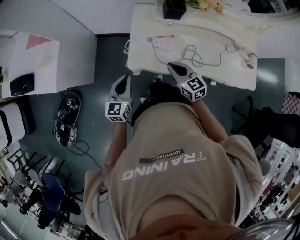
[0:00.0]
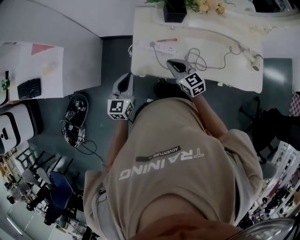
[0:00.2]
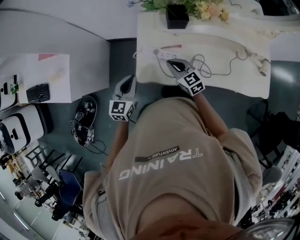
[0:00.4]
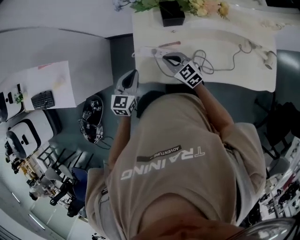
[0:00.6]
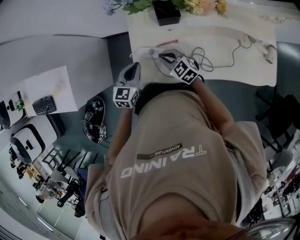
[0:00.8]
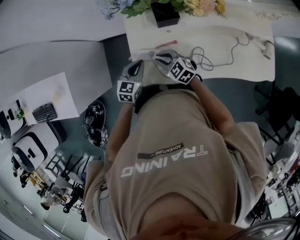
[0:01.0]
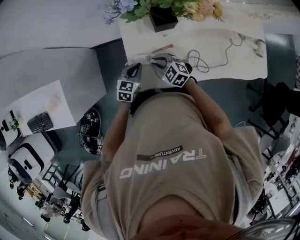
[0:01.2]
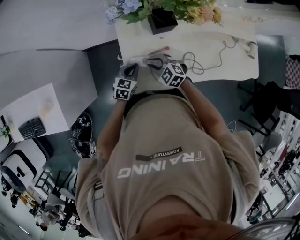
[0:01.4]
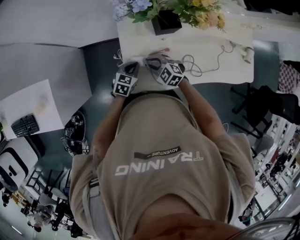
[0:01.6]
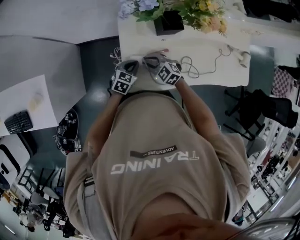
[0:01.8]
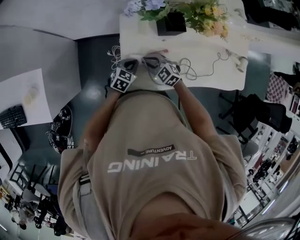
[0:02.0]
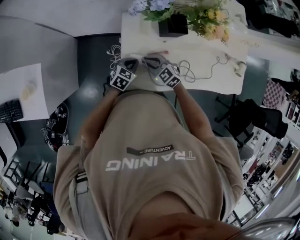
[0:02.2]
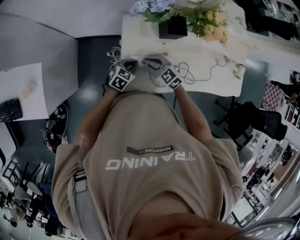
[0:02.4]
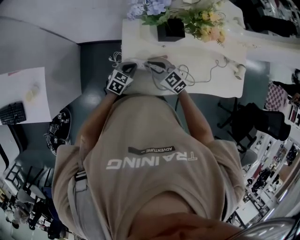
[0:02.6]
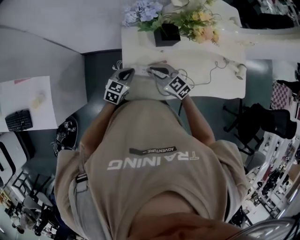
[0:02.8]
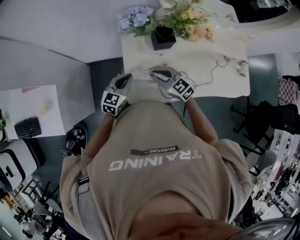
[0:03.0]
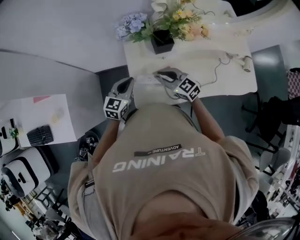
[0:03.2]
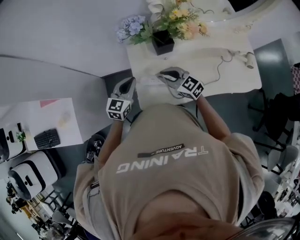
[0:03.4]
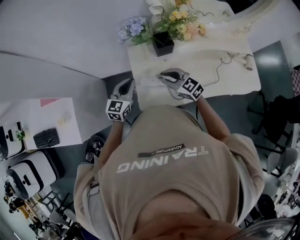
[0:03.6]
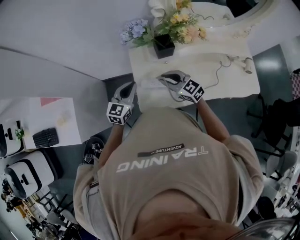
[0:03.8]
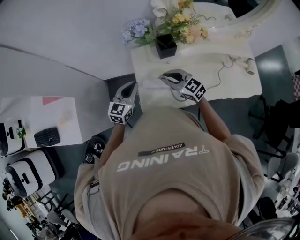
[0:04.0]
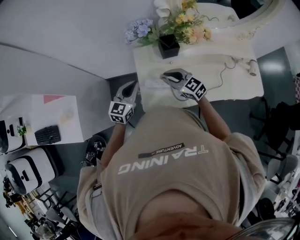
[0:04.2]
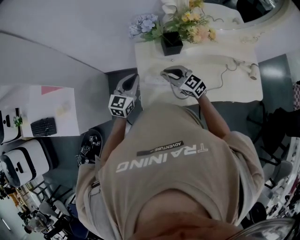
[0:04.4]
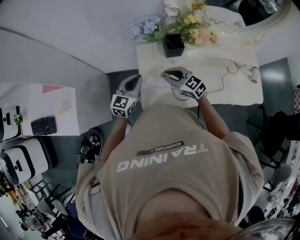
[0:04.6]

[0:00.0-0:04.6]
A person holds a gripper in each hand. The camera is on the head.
0:00.0 to 0:01.6: The right gripper shifts some 20 cm forward and downward, changes its angle by about 30 degrees, and opens up. Meanwhile the left gripper is displaced forward, downward and to the right by roughly 30 cm, and rotates approximately 40 degrees.
0:01.6 to 0:03.0: The grippers both shift upward by approximately 15 cm. The right gripper turns by about 20 degrees.
0:03.0 to 0:04.6: The left gripper moves upward, some 5 cm.

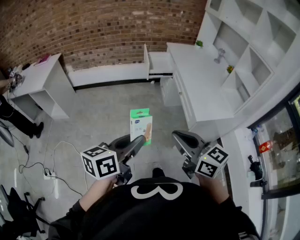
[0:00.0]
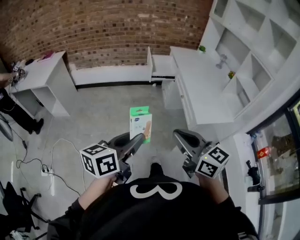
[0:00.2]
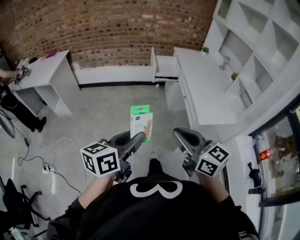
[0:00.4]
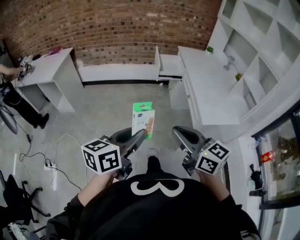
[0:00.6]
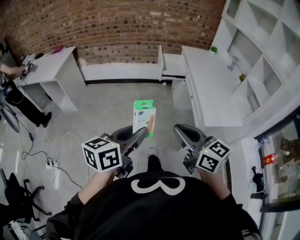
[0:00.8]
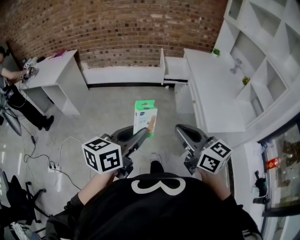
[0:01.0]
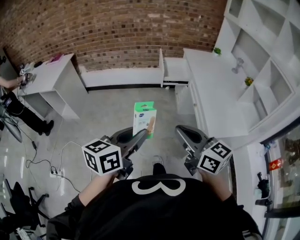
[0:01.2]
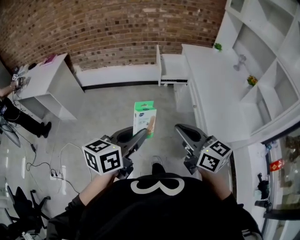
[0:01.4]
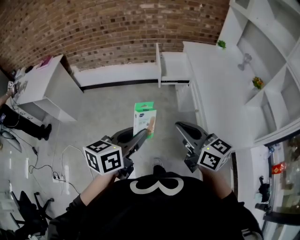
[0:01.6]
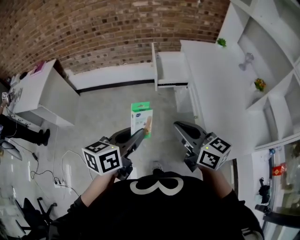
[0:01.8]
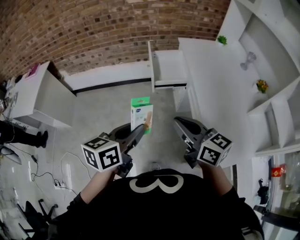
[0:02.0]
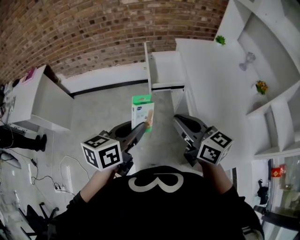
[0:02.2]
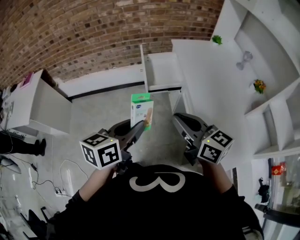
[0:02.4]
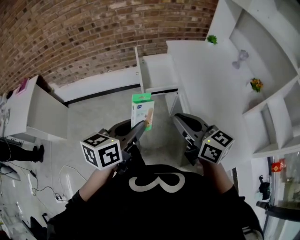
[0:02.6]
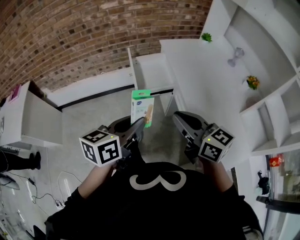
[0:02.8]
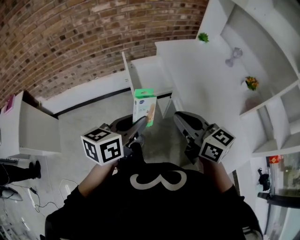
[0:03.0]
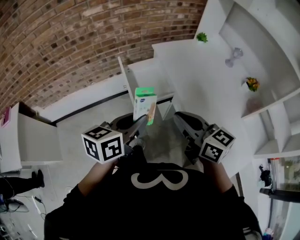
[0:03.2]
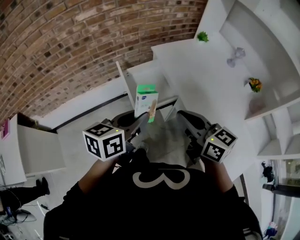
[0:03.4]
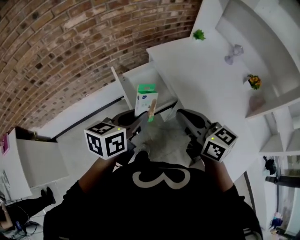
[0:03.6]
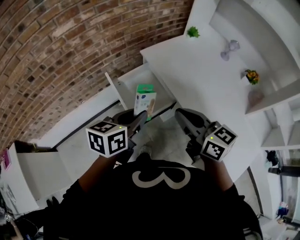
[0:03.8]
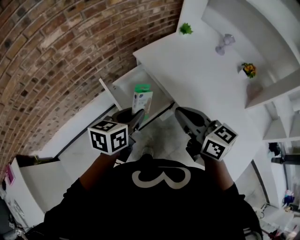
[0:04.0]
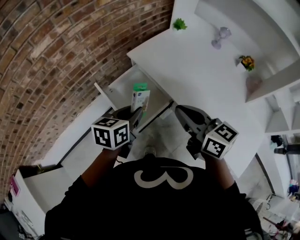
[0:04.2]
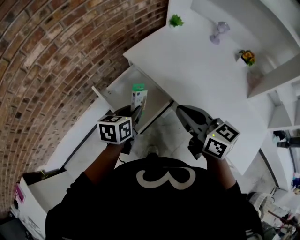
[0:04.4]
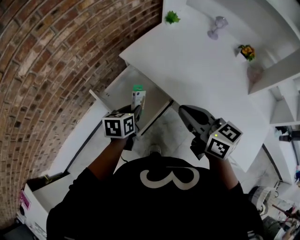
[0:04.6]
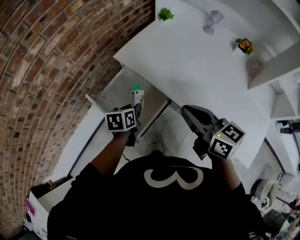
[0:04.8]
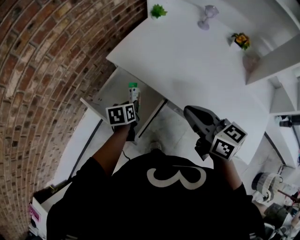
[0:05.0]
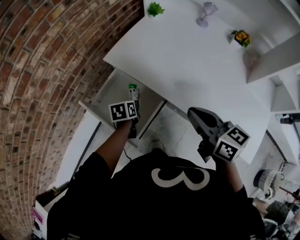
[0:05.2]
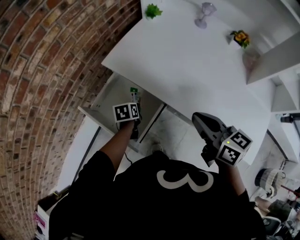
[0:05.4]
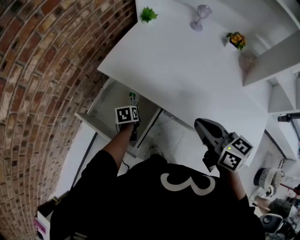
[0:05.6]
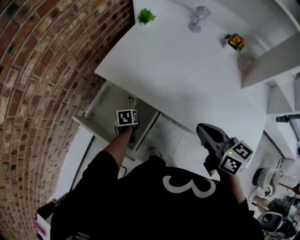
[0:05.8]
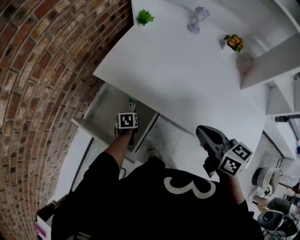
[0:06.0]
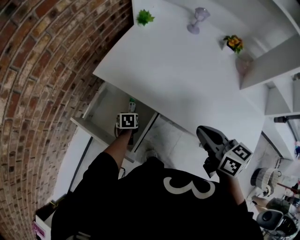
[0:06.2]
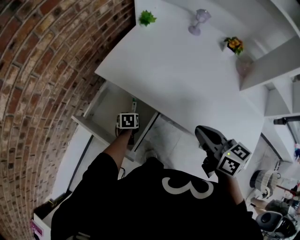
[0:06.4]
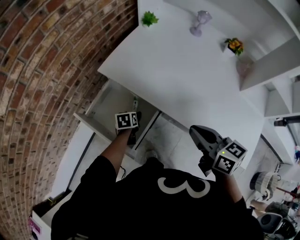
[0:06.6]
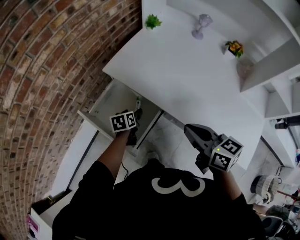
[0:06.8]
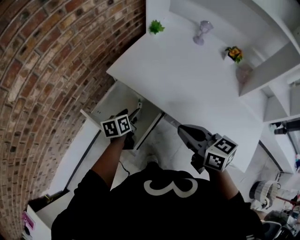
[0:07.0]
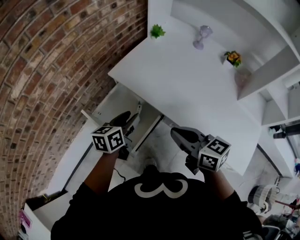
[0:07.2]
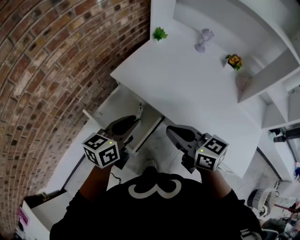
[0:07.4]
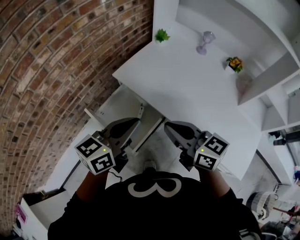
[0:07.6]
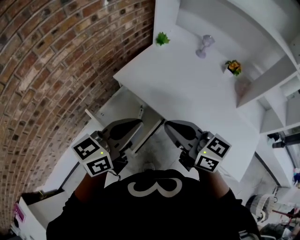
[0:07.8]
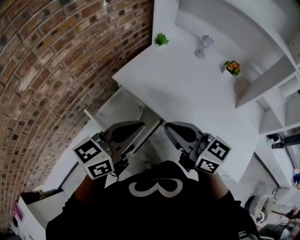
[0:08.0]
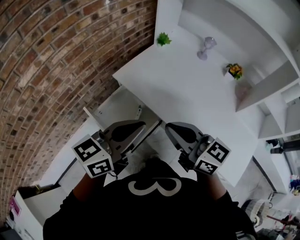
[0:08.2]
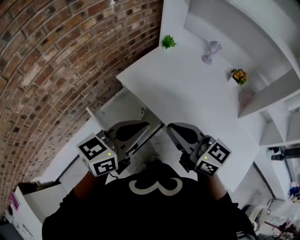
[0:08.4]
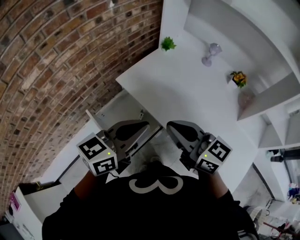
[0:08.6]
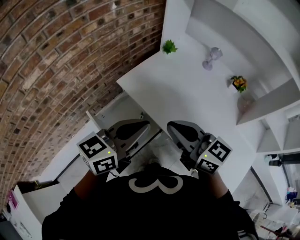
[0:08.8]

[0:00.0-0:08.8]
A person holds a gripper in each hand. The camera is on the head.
0:00.0 to 0:01.4: Both grippers travel together forward, approximately 15 cm.
0:01.4 to 0:03.0: The grippers both shift forward by approximately 40 cm.
0:03.0 to 0:04.4: The left gripper goes approximately 35 cm forward and downward, and rotates roughly 30 degrees; the right gripper travels forward by roughly 20 cm, and swivels some 30 degrees.
0:04.4 to 0:05.8: The left gripper travels downward and forward by about 30 cm, and changes its angle by about 30 degrees. Meanwhile the right gripper heads to the right and downward, covering about 15 cm, and turns by about 20 degrees.
0:05.8 to 0:07.4: The right gripper goes approximately 10 cm to the left, and swivels about 20 degrees. The left gripper is displaced upward by roughly 35 cm, points its fingers approximately 50 degrees further upward, and opens and closes again.
0:07.4 to 0:08.8: The left gripper is displaced upward and to the right by roughly 10 cm. Meanwhile the right gripper travels upward and forward by roughly 10 cm.

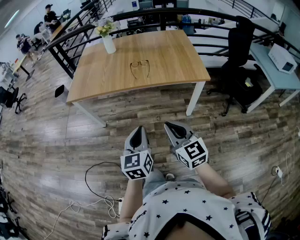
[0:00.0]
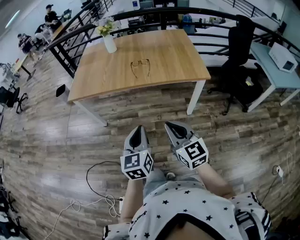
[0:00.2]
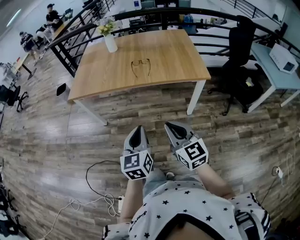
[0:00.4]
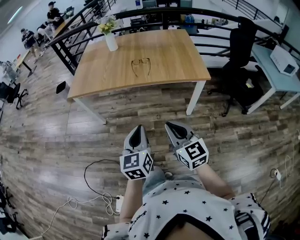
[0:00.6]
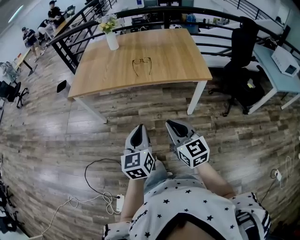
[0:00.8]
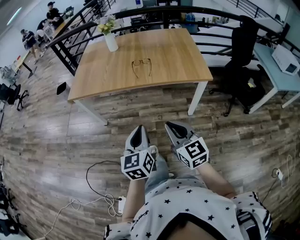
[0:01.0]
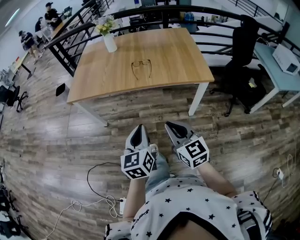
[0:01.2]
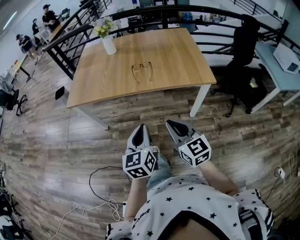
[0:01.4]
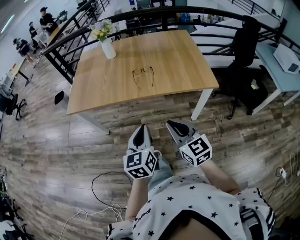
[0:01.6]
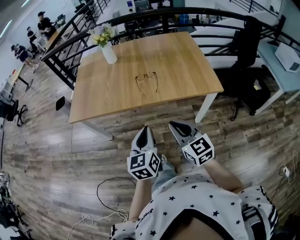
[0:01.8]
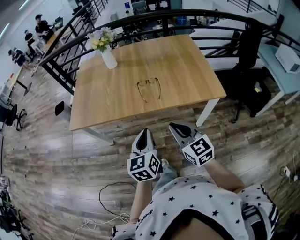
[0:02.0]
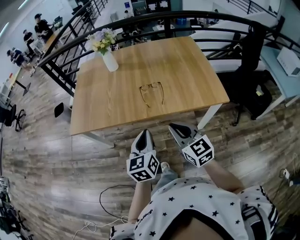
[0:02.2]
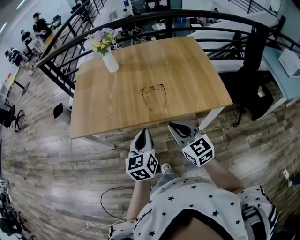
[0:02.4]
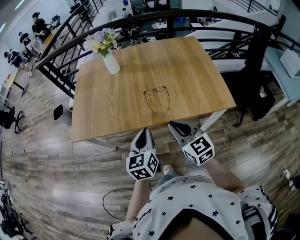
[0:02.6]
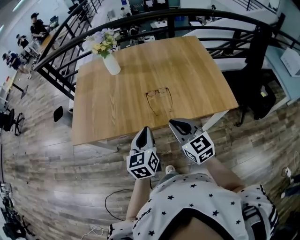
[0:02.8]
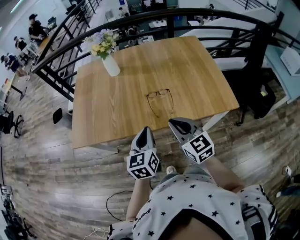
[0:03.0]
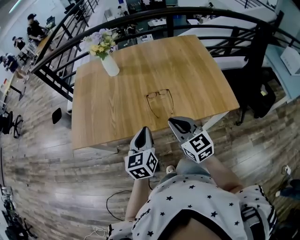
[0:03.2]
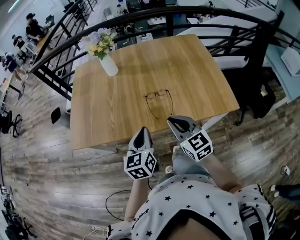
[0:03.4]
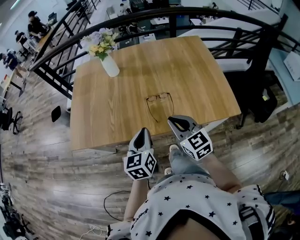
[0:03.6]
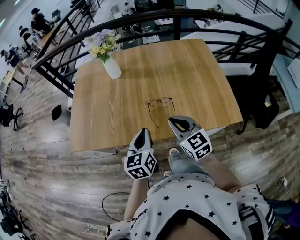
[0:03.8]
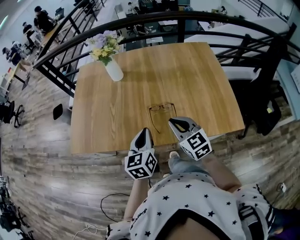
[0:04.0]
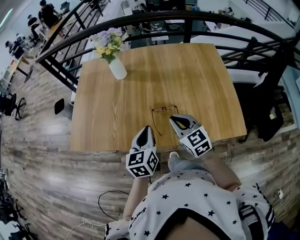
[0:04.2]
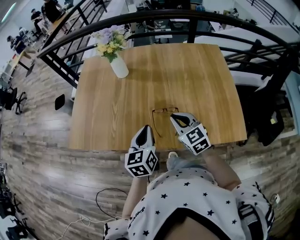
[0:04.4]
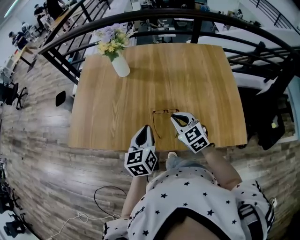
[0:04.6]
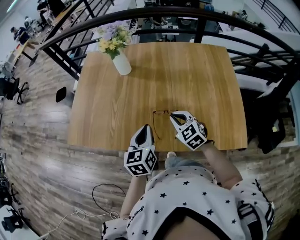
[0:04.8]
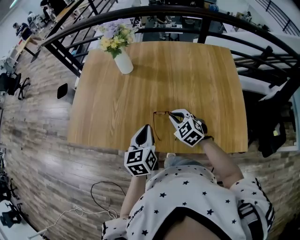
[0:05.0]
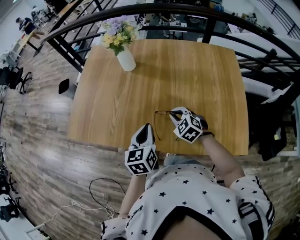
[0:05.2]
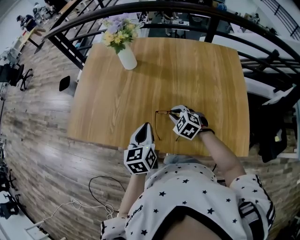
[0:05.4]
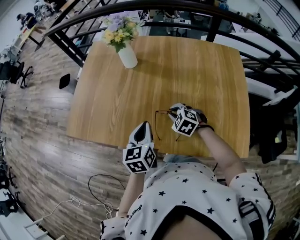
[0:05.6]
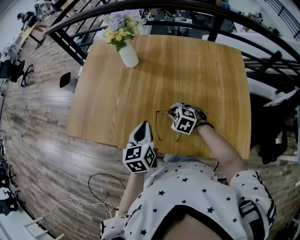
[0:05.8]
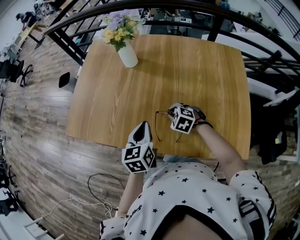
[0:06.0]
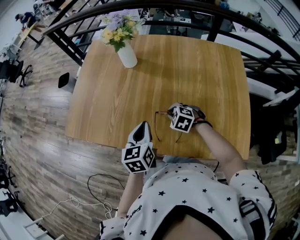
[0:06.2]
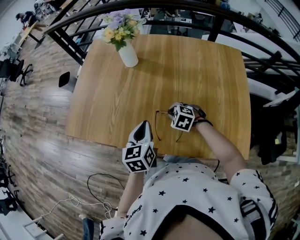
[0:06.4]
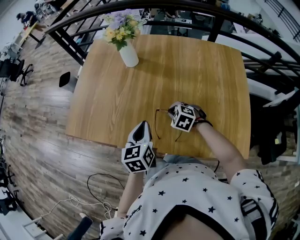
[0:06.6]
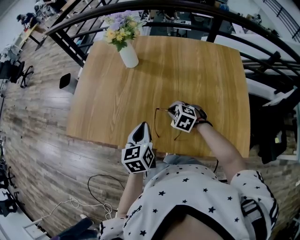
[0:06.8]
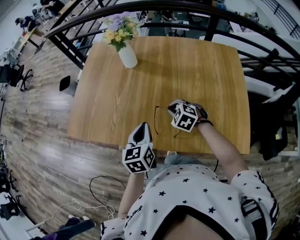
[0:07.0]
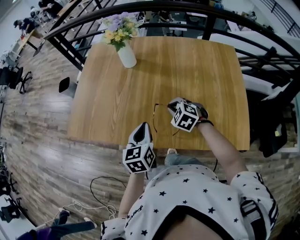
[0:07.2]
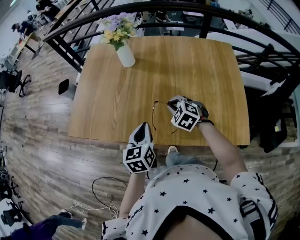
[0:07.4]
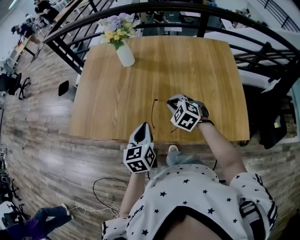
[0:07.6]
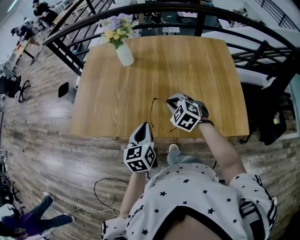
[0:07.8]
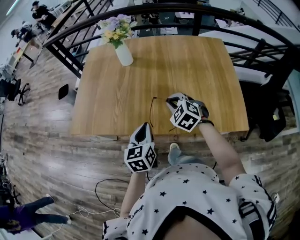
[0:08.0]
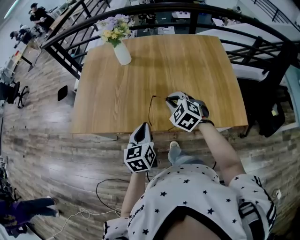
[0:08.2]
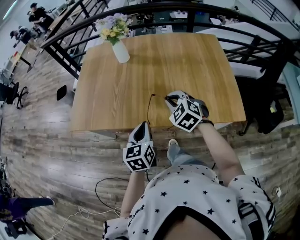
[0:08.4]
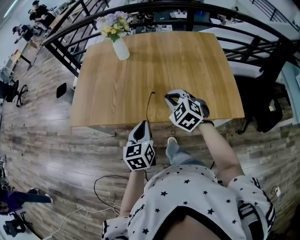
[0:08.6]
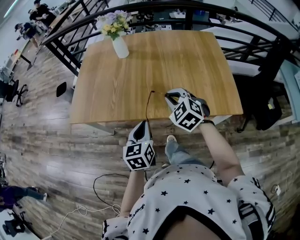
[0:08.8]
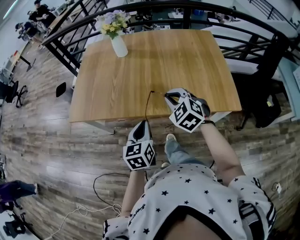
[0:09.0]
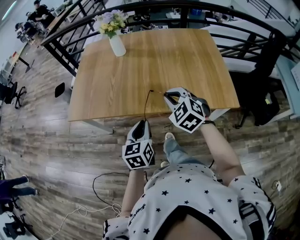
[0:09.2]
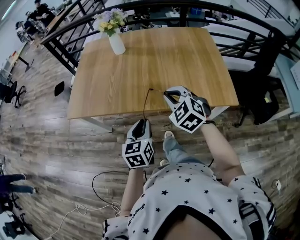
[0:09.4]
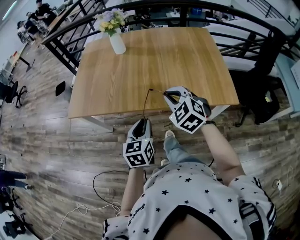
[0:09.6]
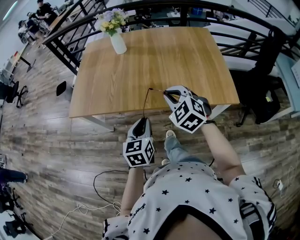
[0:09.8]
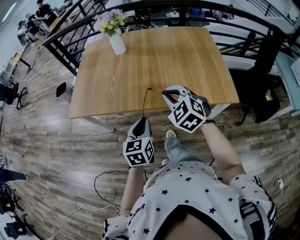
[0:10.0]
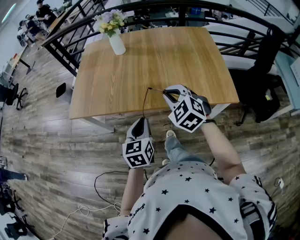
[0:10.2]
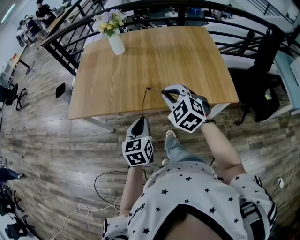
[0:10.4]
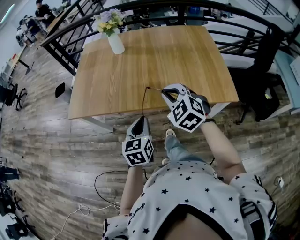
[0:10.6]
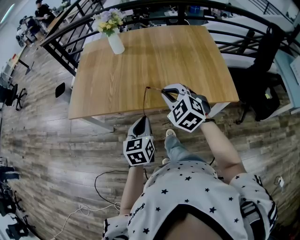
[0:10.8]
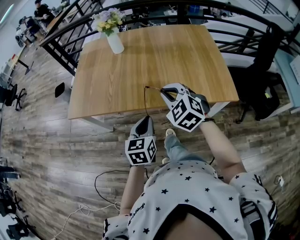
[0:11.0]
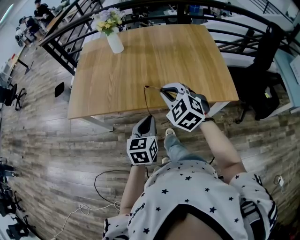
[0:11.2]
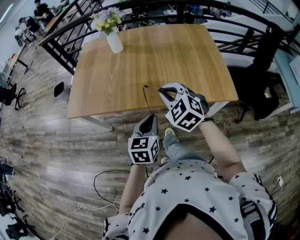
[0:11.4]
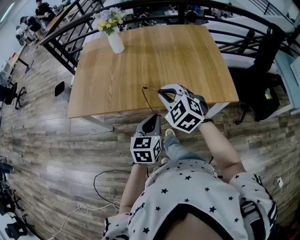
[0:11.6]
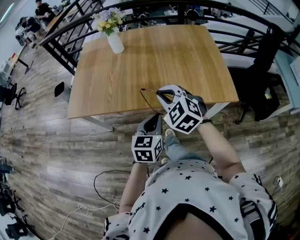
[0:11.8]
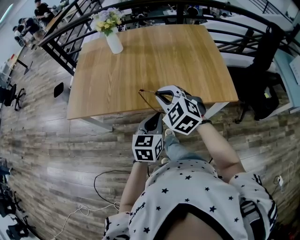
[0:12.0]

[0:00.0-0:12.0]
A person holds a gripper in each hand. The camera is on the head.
0:00.0 to 0:01.6: The two grippers go roughly 10 cm forward.
0:01.6 to 0:03.0: Both grippers travel together forward, about 25 cm.
0:03.0 to 0:04.4: The grippers both shift forward by approximately 15 cm.
0:04.4 to 0:06.0: The left gripper heads forward, covering roughly 5 cm. The right gripper heads downward and forward, covering roughly 15 cm, and angles its fingers downward, by some 40 degrees.
0:06.0 to 0:07.6: The right gripper heads upward, covering roughly 10 cm; the left gripper travels backward by approximately 5 cm.
0:07.6 to 0:09.0: The right gripper shifts roughly 20 cm backward and upward, while the left gripper travels backward by roughly 15 cm.
0:09.0 to 0:10.4: The right gripper shifts by about 5 cm.
0:10.4 to 0:12.0: The left gripper goes roughly 5 cm to the right.
